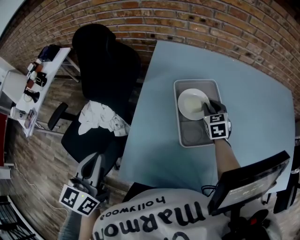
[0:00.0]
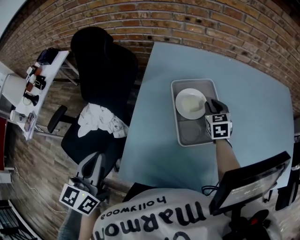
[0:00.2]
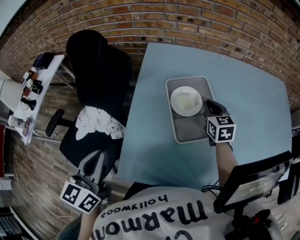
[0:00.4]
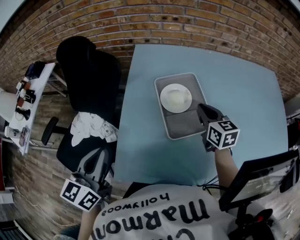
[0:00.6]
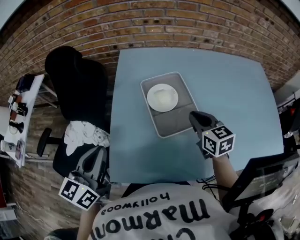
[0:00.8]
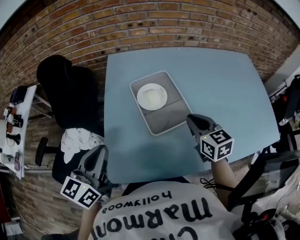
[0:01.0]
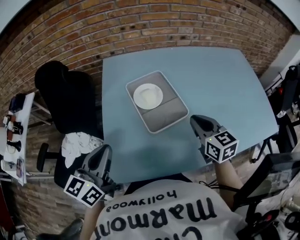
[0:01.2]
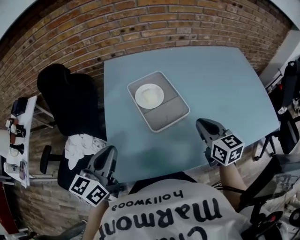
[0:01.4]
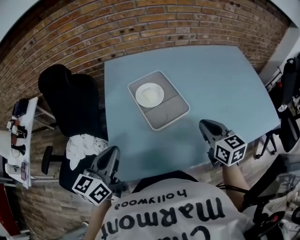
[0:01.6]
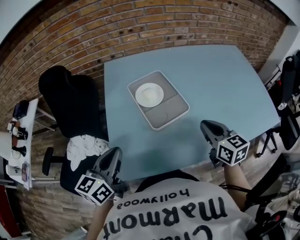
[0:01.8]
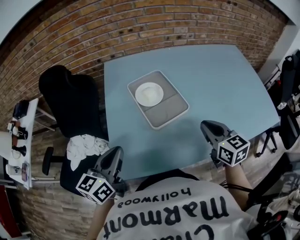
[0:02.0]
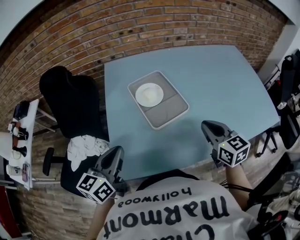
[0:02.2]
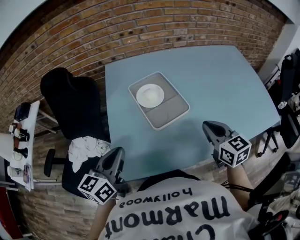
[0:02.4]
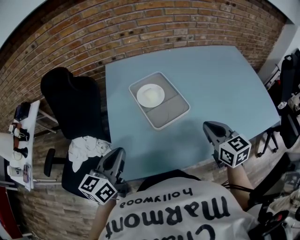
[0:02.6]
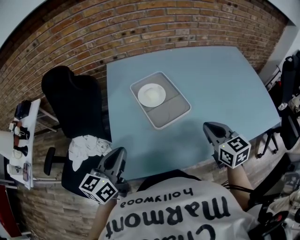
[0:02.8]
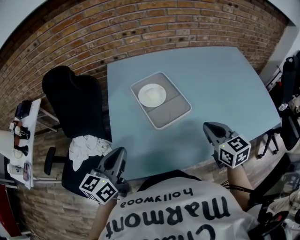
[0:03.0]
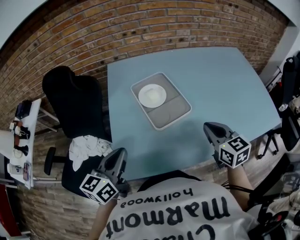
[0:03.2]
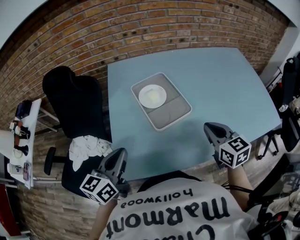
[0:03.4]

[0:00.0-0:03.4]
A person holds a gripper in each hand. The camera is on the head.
0:00.0 to 0:01.6: The left gripper goes approximately 10 cm to the right, and swivels about 30 degrees. The right gripper is displaced backward and upward by roughly 30 cm, and turns by approximately 30 degrees.
0:01.6 to 0:03.4: The grippers make only small movements.

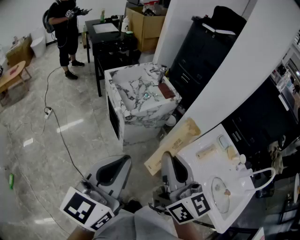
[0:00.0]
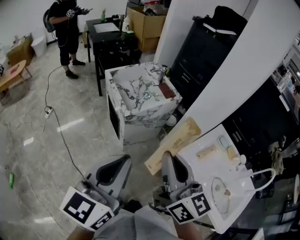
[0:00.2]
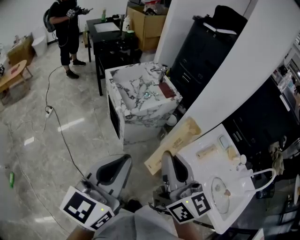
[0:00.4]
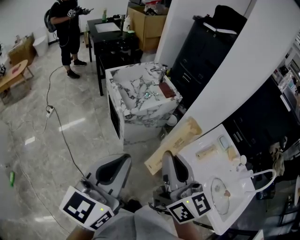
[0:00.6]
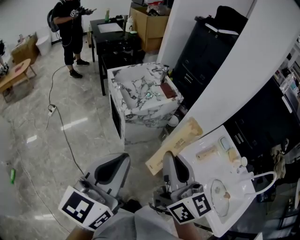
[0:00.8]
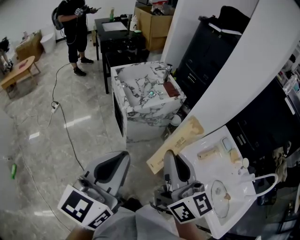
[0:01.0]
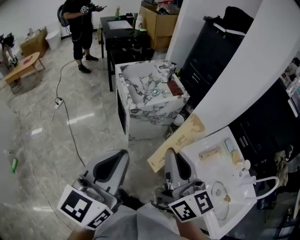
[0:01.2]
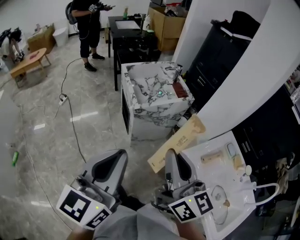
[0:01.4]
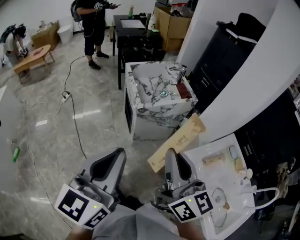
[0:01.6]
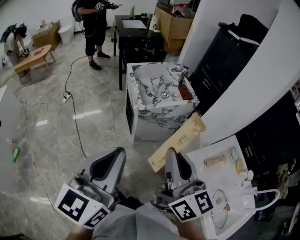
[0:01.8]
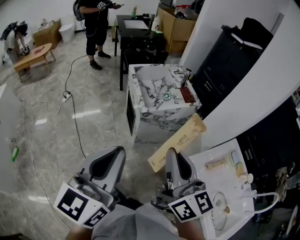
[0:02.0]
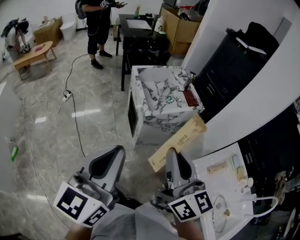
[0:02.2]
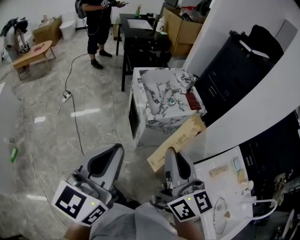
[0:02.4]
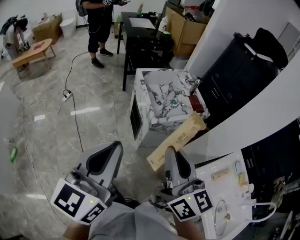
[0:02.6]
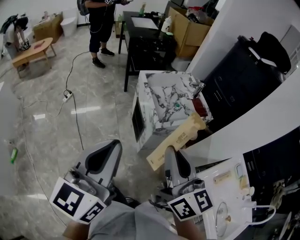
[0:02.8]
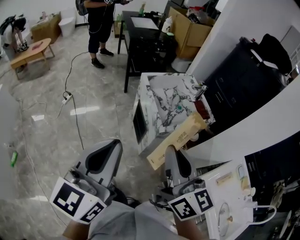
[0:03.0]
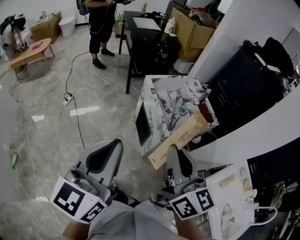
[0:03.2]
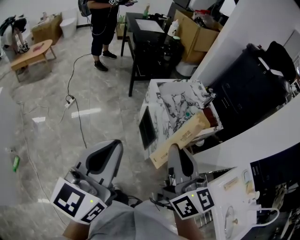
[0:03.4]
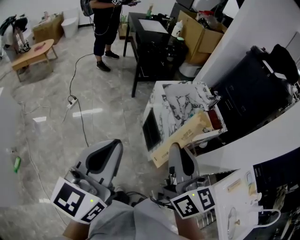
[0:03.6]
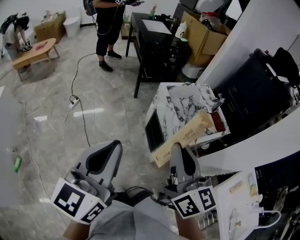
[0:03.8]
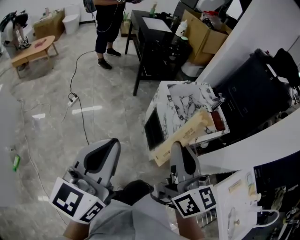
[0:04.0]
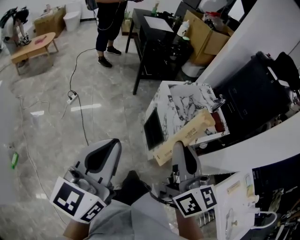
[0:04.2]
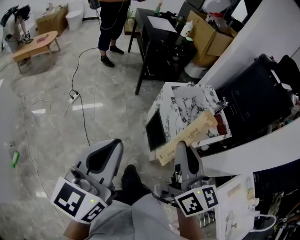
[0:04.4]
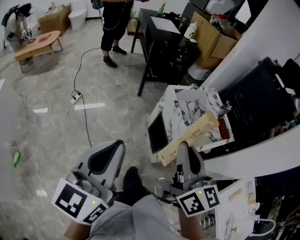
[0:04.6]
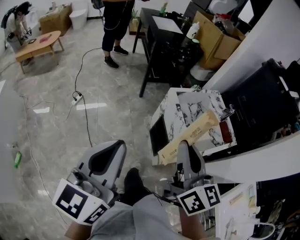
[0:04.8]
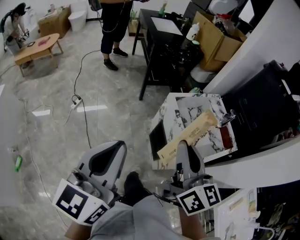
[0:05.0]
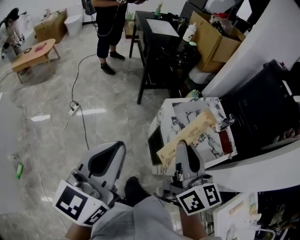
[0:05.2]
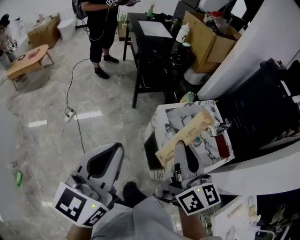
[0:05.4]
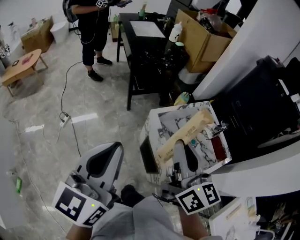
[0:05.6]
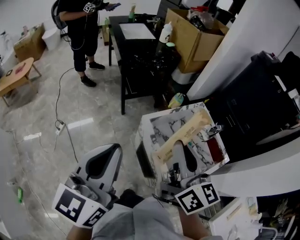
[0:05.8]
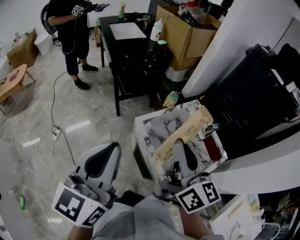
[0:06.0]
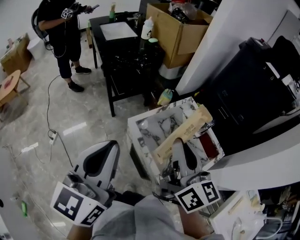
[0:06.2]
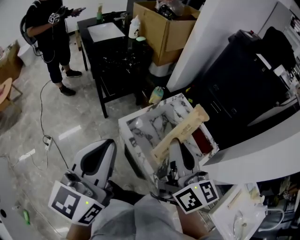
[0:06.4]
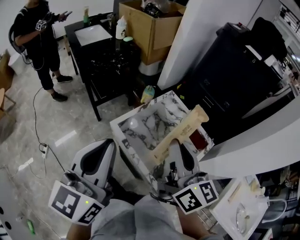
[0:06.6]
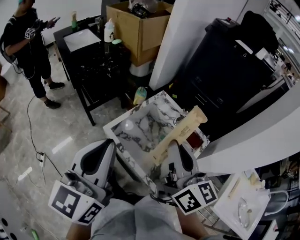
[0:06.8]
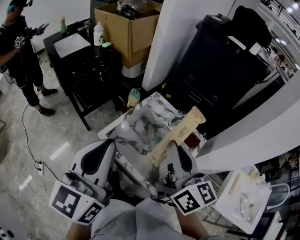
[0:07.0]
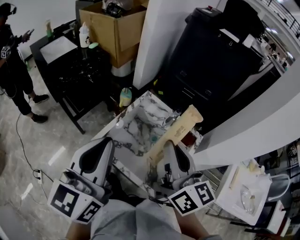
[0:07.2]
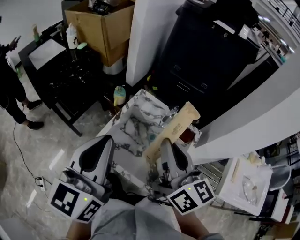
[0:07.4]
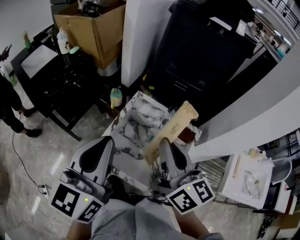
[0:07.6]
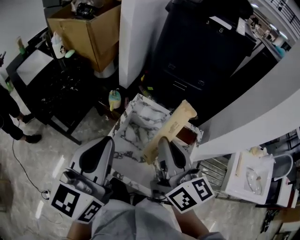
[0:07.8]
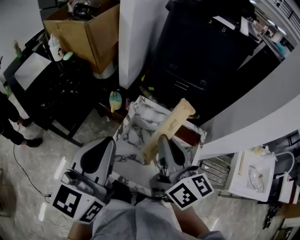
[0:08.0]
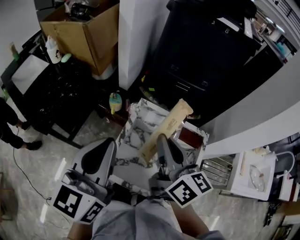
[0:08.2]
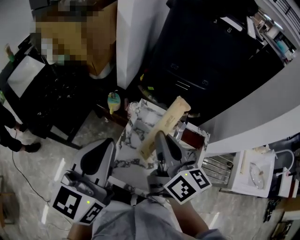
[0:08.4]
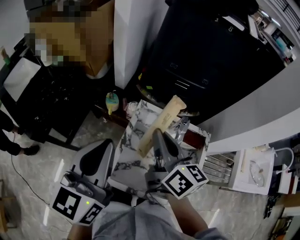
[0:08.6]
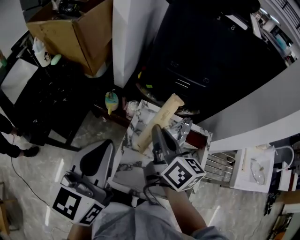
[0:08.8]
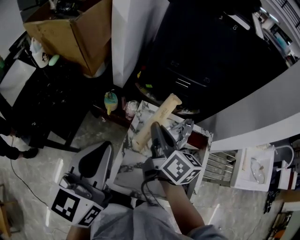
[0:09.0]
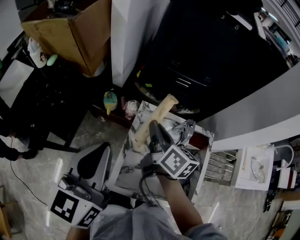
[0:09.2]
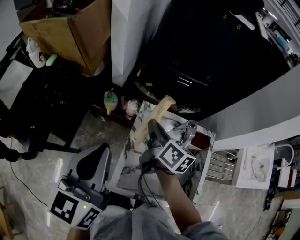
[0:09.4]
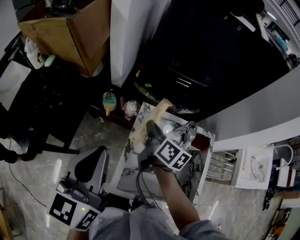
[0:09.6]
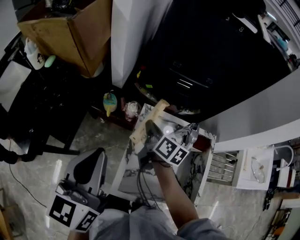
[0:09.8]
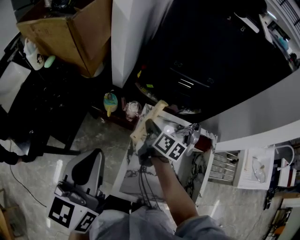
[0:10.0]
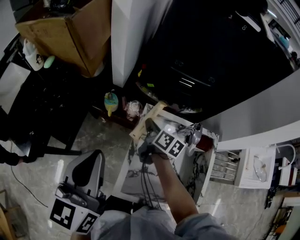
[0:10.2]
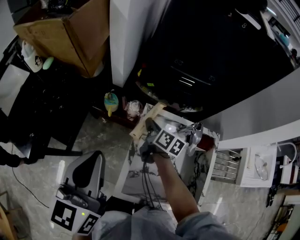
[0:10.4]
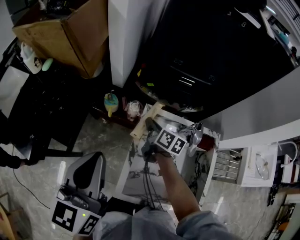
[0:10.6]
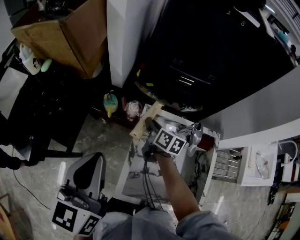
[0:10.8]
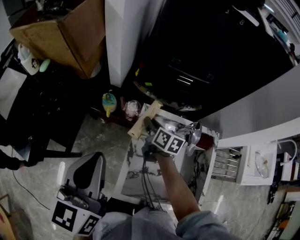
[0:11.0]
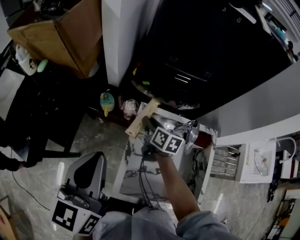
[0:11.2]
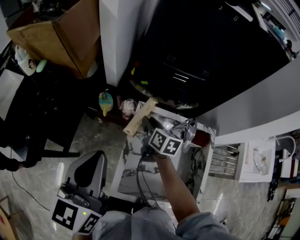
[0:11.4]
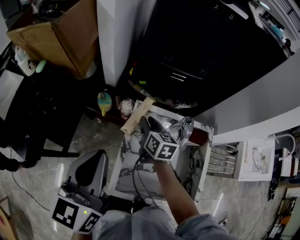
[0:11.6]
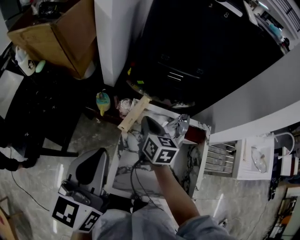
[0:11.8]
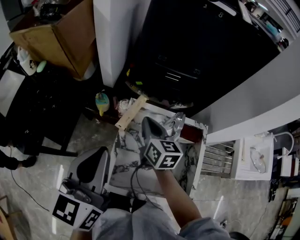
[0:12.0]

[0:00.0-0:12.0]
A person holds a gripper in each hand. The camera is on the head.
0:00.0 to 0:01.6: There are only small adjustments of the grippers.
0:01.6 to 0:03.0: Both grippers travel together to the left and forward, approximately 25 cm.
0:03.0 to 0:04.4: The two grippers go about 20 cm to the left and forward.
0:04.4 to 0:06.0: Both grippers travel together forward, about 30 cm.
0:06.0 to 0:07.6: The right gripper changes place by some 15 cm, and turns by roughly 30 degrees, while the left gripper shifts by approximately 25 cm, and swivels some 30 degrees.
0:07.6 to 0:09.0: The left gripper heads forward and to the left, covering approximately 20 cm, while the right gripper is displaced forward, downward and to the left by approximately 25 cm, and turns by approximately 20 degrees.
0:09.0 to 0:10.4: The left gripper moves to the left, some 5 cm. Meanwhile the right gripper is displaced downward and forward by approximately 20 cm.
0:10.4 to 0:12.0: The right gripper travels upward and backward by roughly 10 cm, rotates some 30 degrees, and opens, then closes once more, while the left gripper moves to the right, roughly 10 cm.

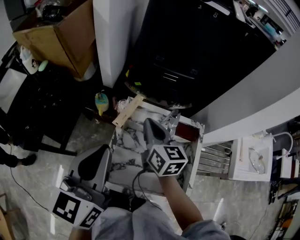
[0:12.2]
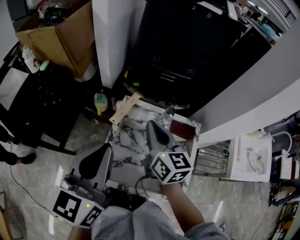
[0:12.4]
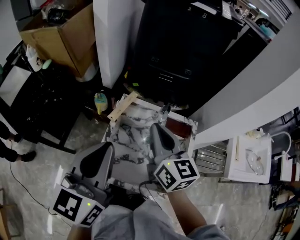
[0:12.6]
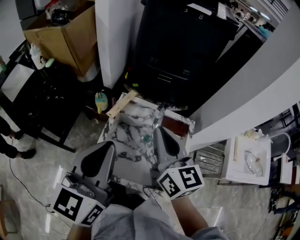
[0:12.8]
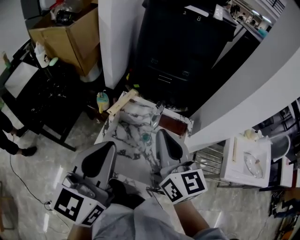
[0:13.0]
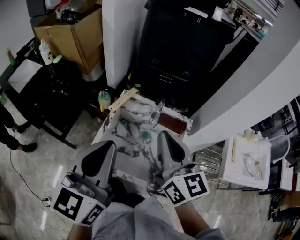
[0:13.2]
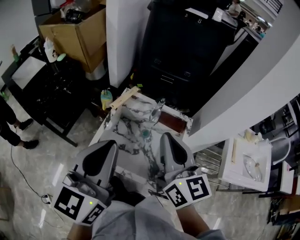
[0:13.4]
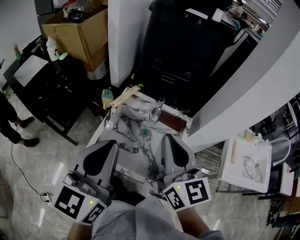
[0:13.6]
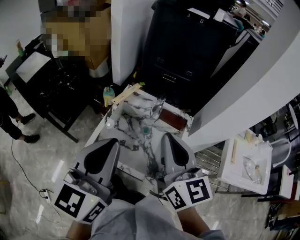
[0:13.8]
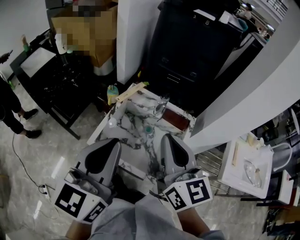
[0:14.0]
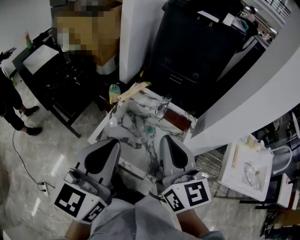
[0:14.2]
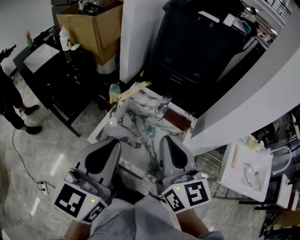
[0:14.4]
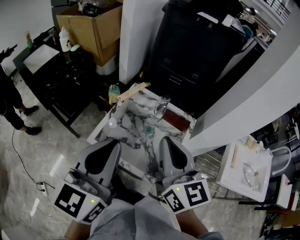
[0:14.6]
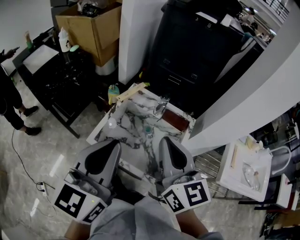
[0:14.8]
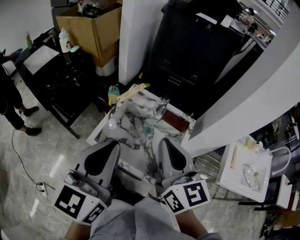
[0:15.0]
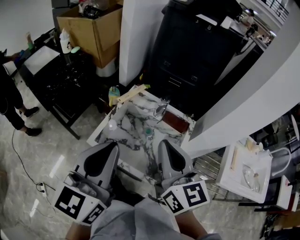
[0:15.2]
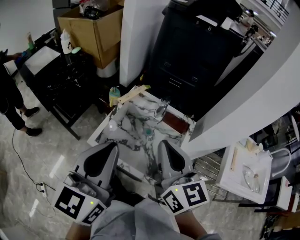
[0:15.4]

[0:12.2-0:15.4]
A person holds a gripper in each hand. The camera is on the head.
0:12.2 to 0:13.8: The right gripper goes about 30 cm backward, upward and to the right, and rotates some 20 degrees; the left gripper travels backward and to the right by about 20 cm.
0:13.8 to 0:15.4: The grippers move only a little.

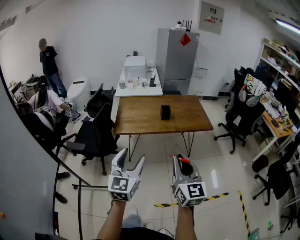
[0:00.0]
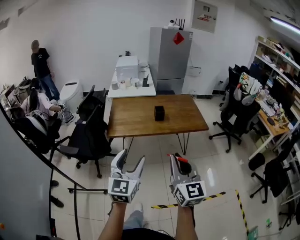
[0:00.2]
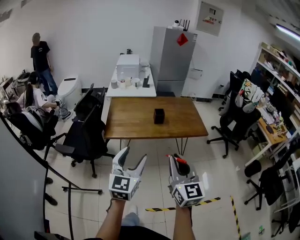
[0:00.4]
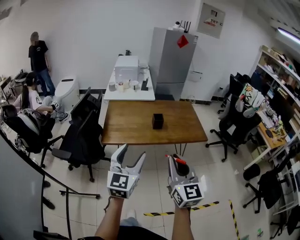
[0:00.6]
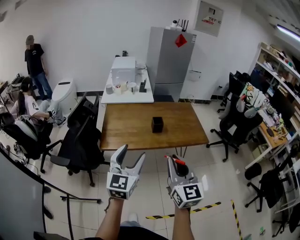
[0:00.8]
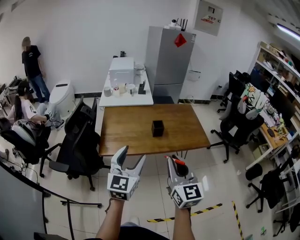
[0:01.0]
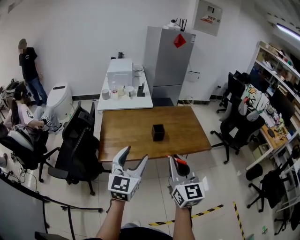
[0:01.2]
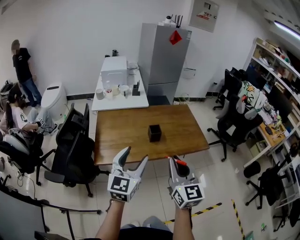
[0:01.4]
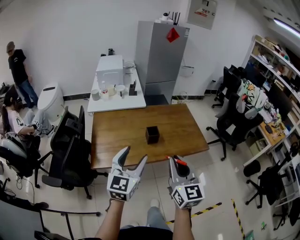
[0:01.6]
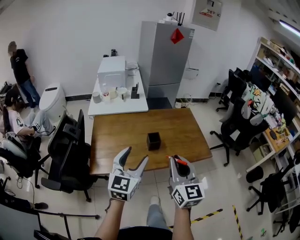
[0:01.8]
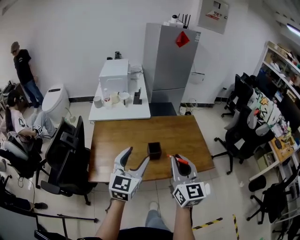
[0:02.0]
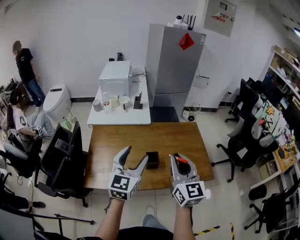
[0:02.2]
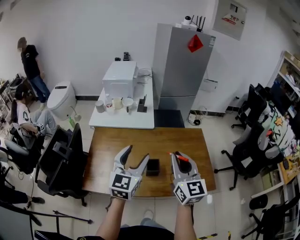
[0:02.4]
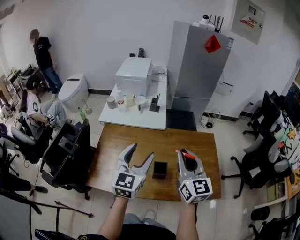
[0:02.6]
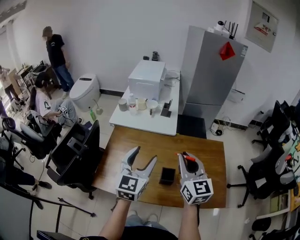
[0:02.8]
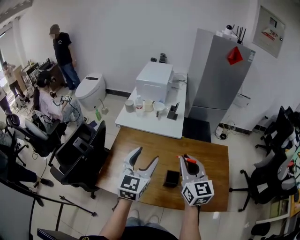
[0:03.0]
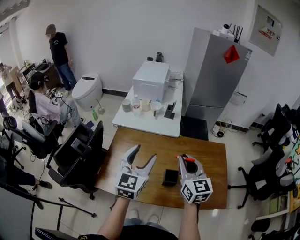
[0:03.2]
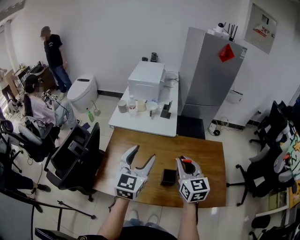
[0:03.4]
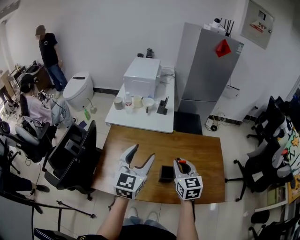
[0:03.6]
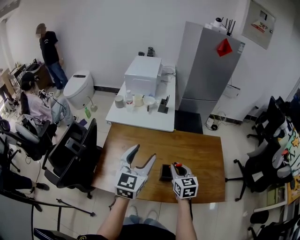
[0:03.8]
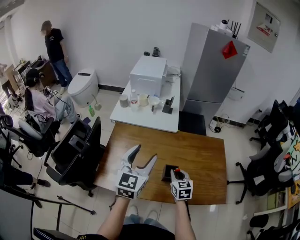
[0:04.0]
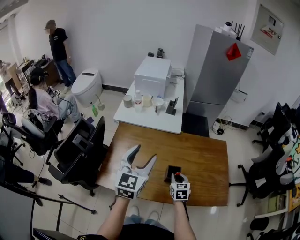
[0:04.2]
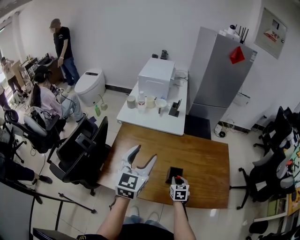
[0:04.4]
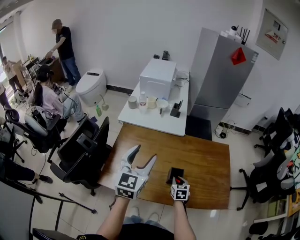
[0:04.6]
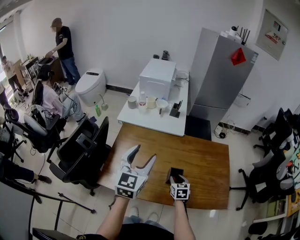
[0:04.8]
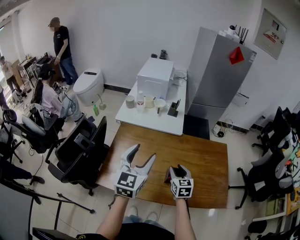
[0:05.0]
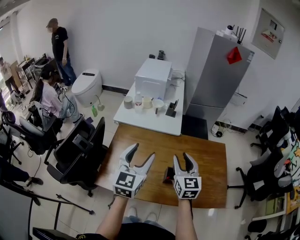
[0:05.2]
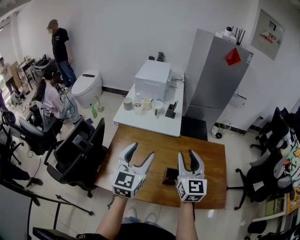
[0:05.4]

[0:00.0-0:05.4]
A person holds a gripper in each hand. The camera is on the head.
0:00.0 to 0:01.4: Both grippers travel together forward, approximately 30 cm.
0:01.4 to 0:02.8: The two grippers go approximately 35 cm forward. The right gripper changes its angle by approximately 20 degrees.
0:02.8 to 0:04.0: The right gripper is displaced downward by about 25 cm, and changes its angle by some 30 degrees.
0:04.0 to 0:05.4: The right gripper is displaced upward by roughly 25 cm, and changes its angle by roughly 30 degrees.
